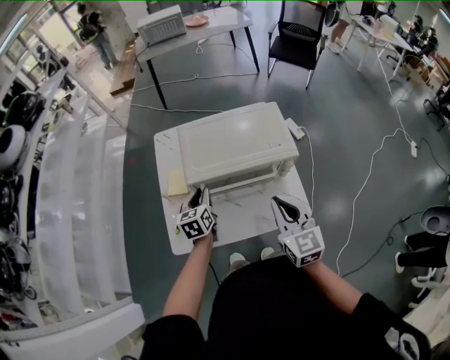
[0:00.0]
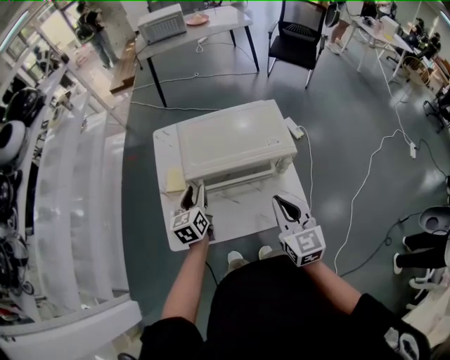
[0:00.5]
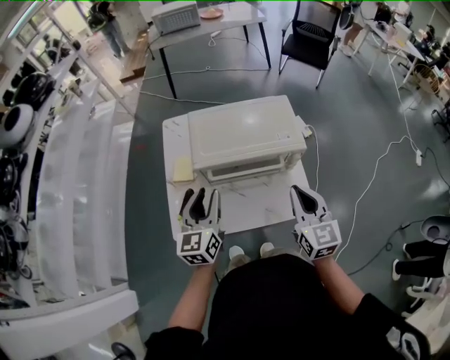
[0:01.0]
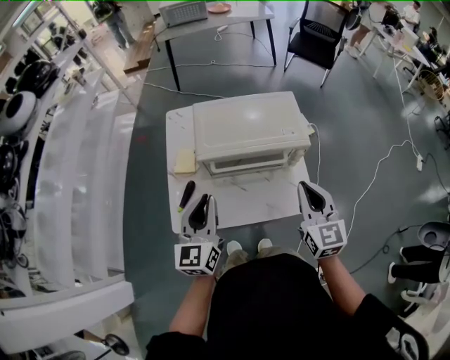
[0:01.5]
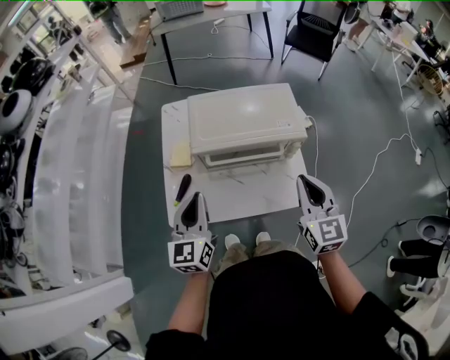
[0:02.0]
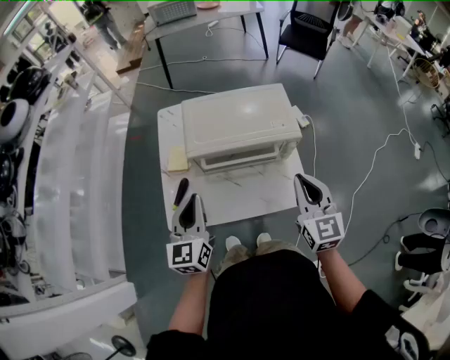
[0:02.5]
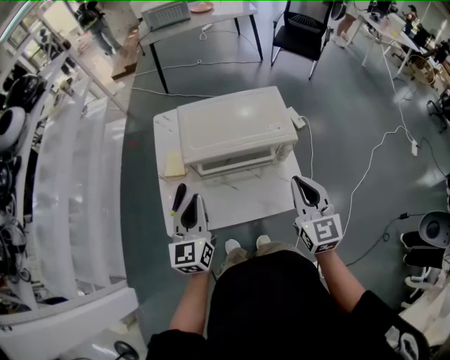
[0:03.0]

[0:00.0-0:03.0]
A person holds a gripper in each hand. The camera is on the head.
0:00.0 to 0:01.5: The left gripper shifts some 20 cm upward and backward, and changes its angle by about 30 degrees.
0:01.5 to 0:03.0: The grippers stay close to where they were, moving slightly.

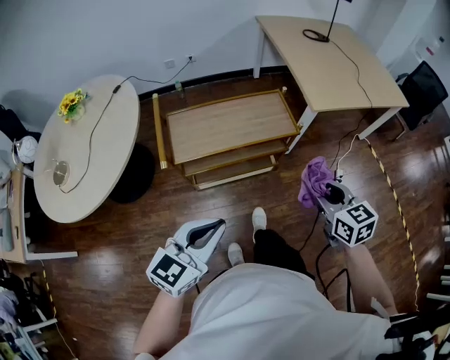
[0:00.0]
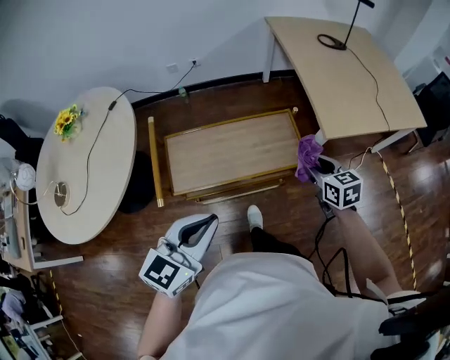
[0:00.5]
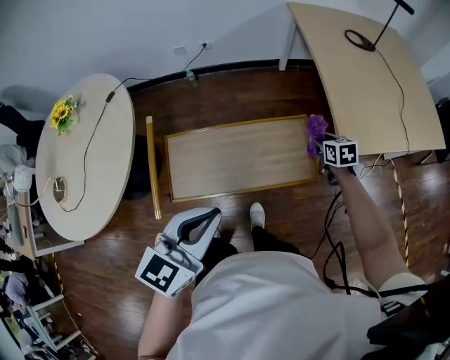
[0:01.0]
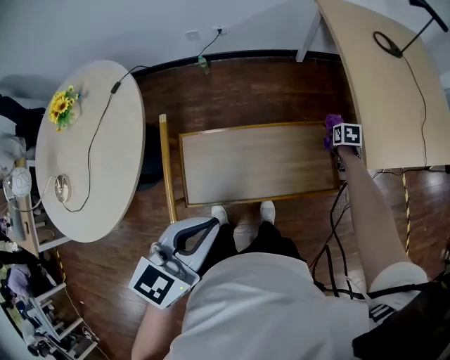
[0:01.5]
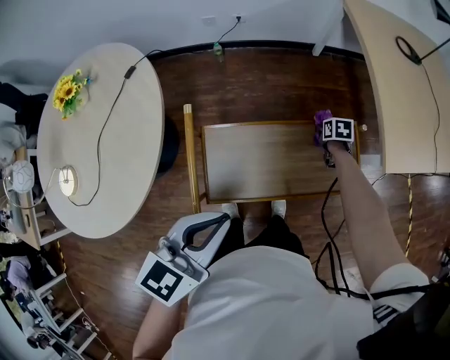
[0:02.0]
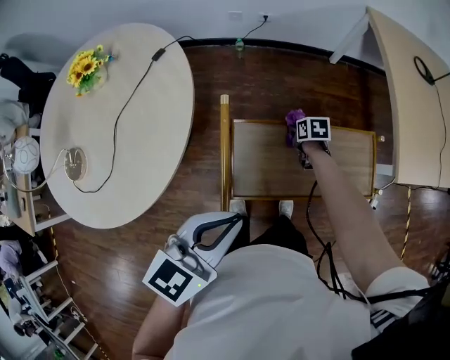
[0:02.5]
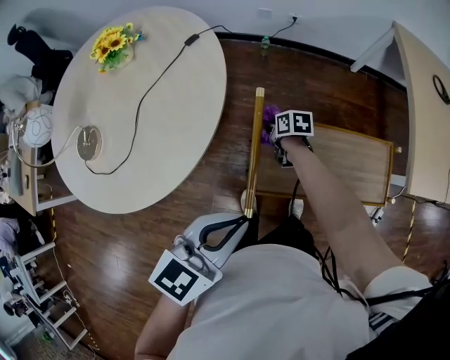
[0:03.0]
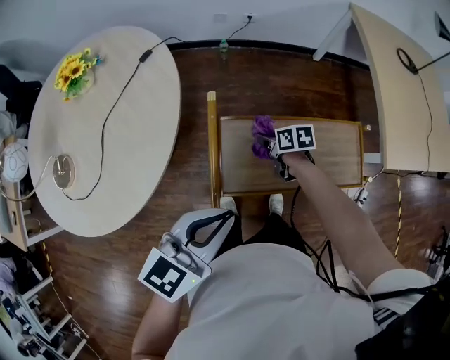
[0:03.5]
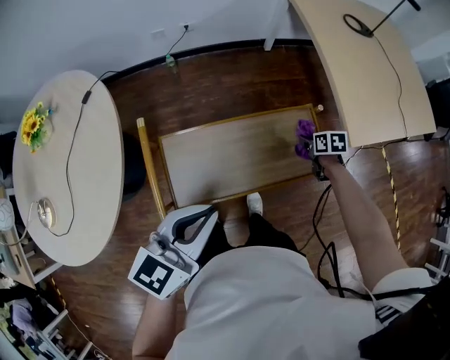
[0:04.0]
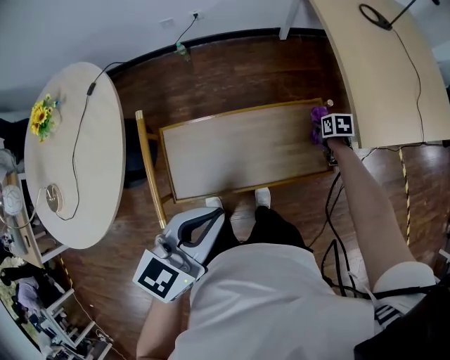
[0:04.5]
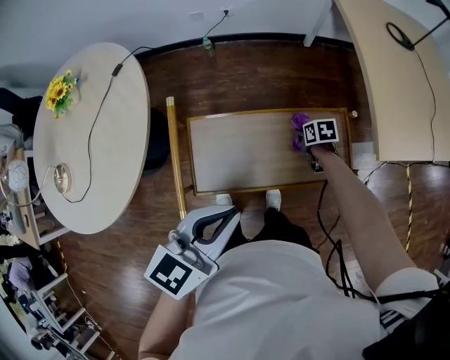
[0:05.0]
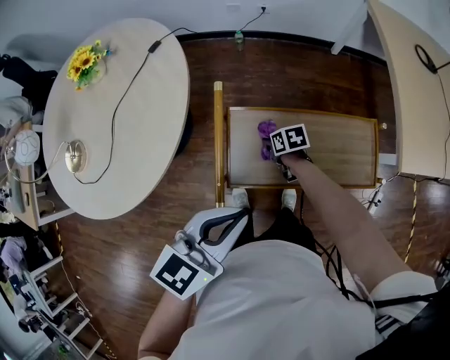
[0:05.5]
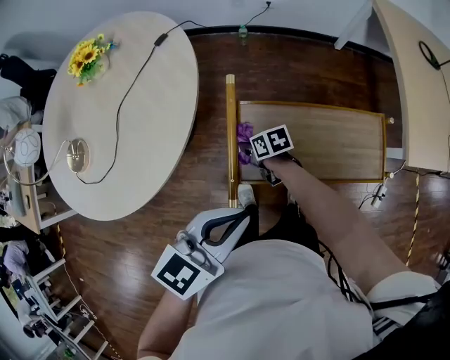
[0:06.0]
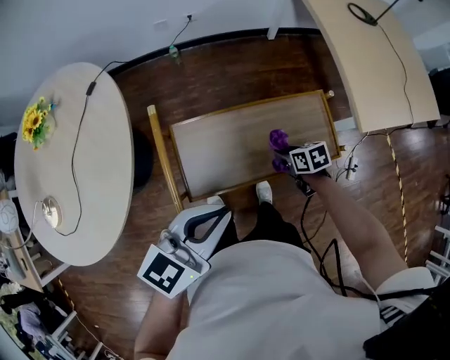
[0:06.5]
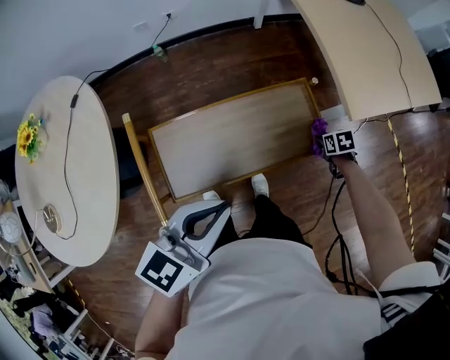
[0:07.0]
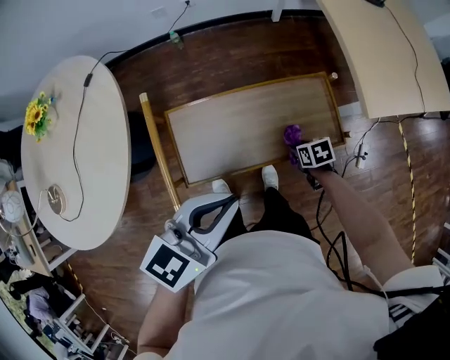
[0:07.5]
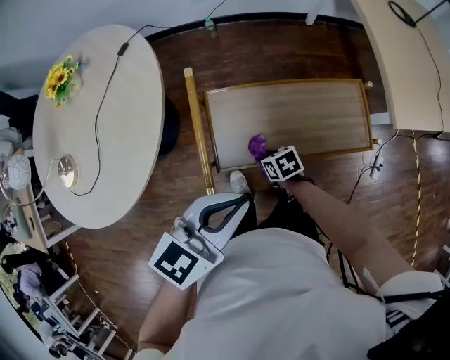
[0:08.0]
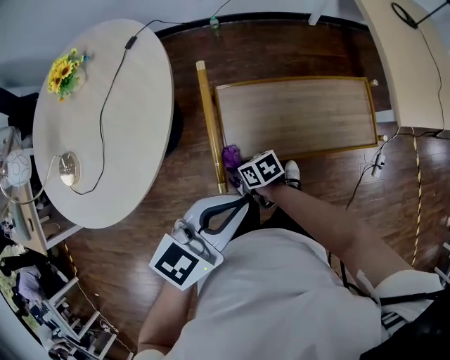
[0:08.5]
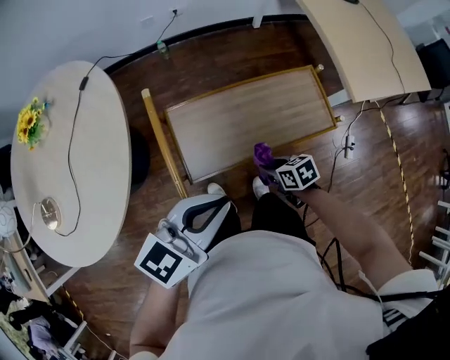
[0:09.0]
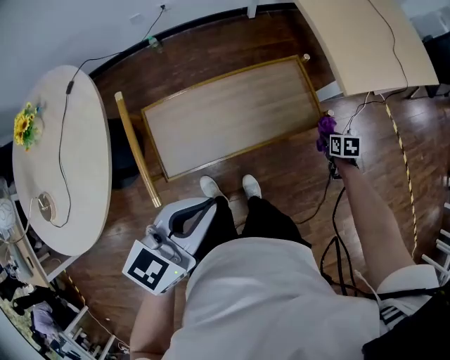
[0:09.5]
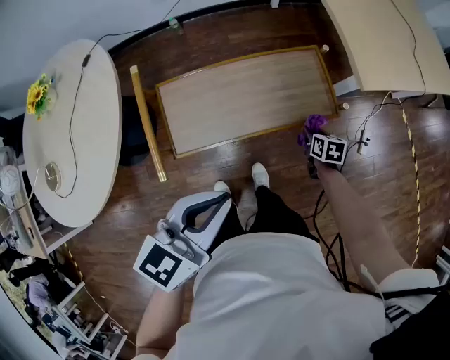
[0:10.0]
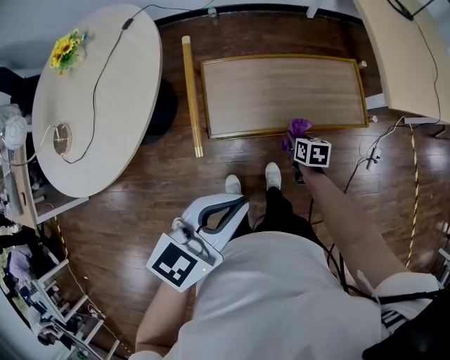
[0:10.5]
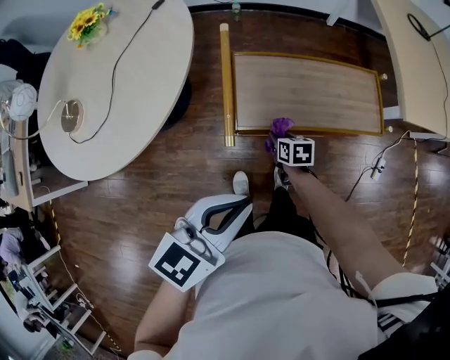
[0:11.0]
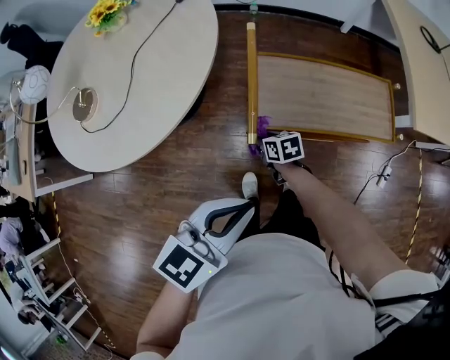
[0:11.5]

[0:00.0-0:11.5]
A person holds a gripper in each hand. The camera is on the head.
0:00.0 to 0:02.0: The left gripper travels forward and to the left by approximately 35 cm, while the right gripper shifts approximately 60 cm forward and downward, and angles its fingers downward, by some 40 degrees.
0:04.0 to 0:06.0: The left gripper moves approximately 15 cm. Meanwhile the right gripper shifts by approximately 50 cm, and swivels roughly 40 degrees.
0:06.0 to 0:07.5: The left gripper changes place by roughly 15 cm. Meanwhile the right gripper ends up roughly 40 cm from where it was, and turns by some 30 degrees.
0:07.5 to 0:09.5: The right gripper turns by about 20 degrees.
0:09.5 to 0:11.5: The right gripper shifts by some 60 cm, and turns by roughly 40 degrees. The left gripper changes place by approximately 20 cm.

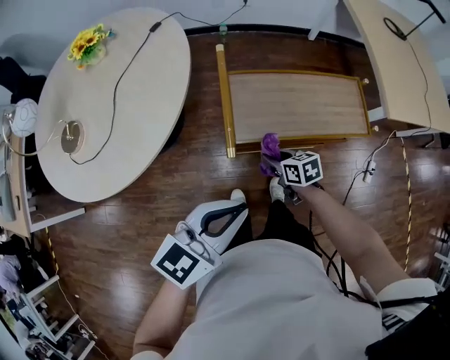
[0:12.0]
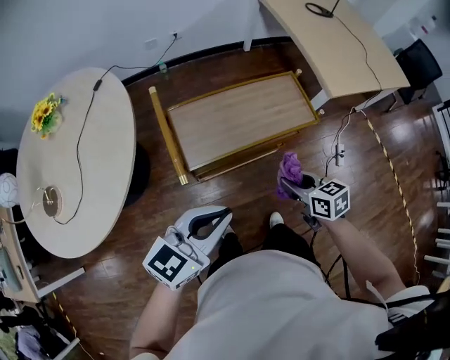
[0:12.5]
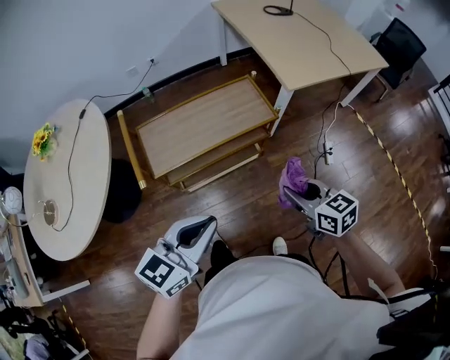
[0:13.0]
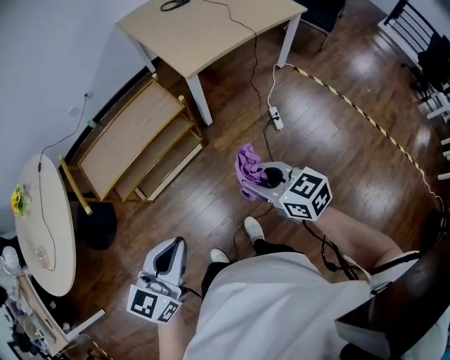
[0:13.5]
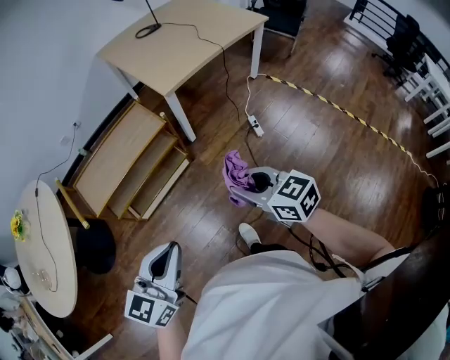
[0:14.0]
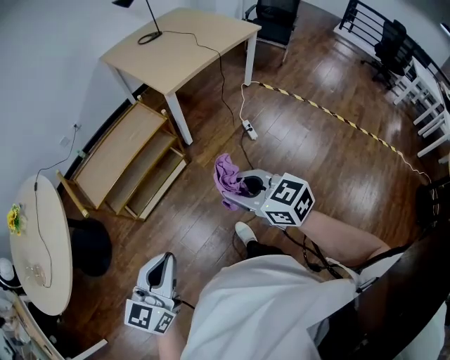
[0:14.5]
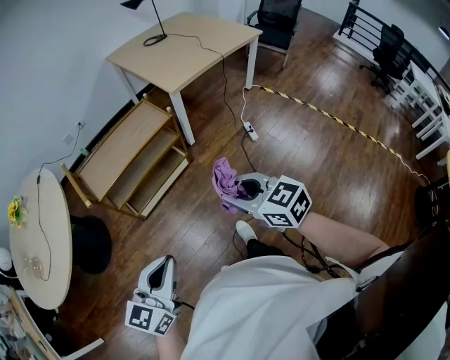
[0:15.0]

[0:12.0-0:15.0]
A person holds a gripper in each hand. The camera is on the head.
0:12.0 to 0:13.5: The right gripper goes about 60 cm to the right, upward and backward, and rotates some 30 degrees; the left gripper is displaced to the right by approximately 35 cm.
0:13.5 to 0:15.0: The two grippers go approximately 20 cm backward and to the left.

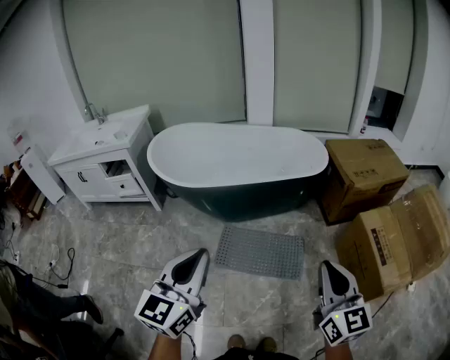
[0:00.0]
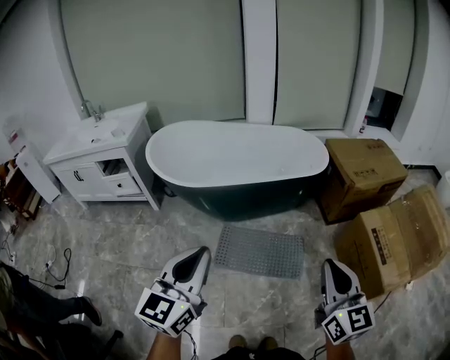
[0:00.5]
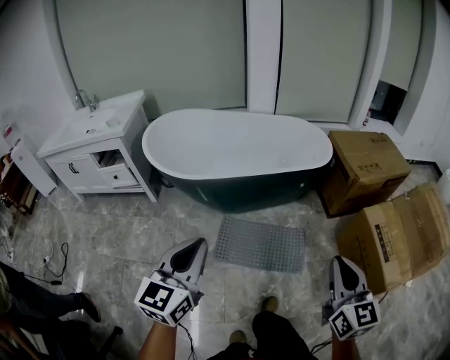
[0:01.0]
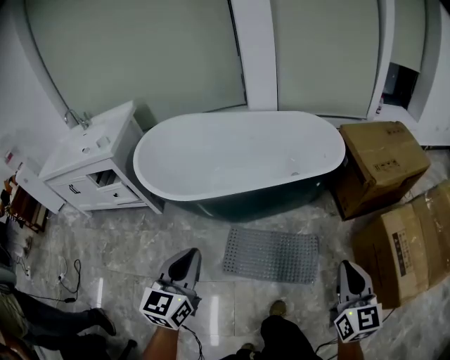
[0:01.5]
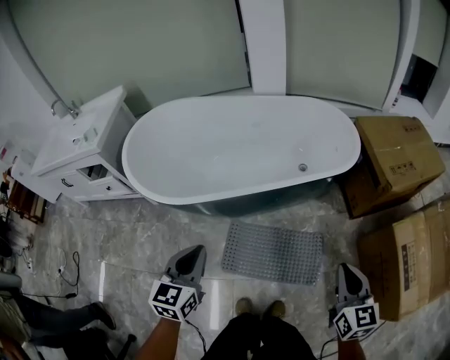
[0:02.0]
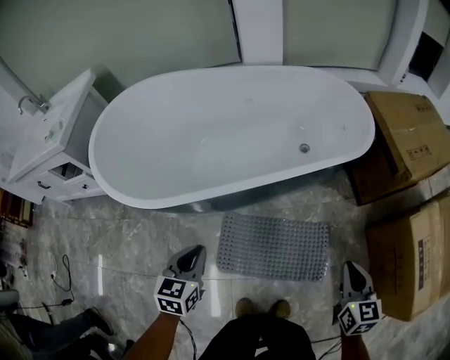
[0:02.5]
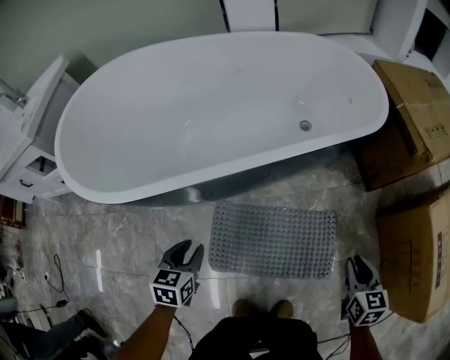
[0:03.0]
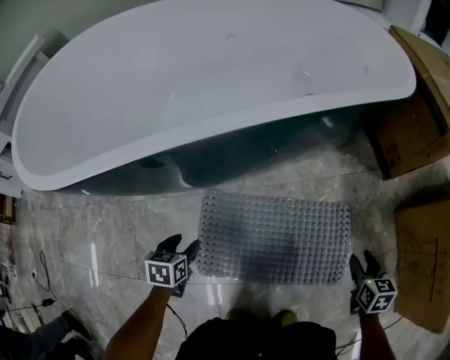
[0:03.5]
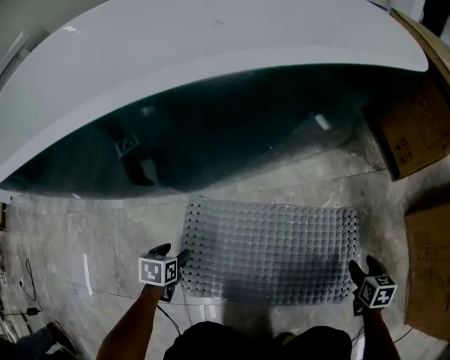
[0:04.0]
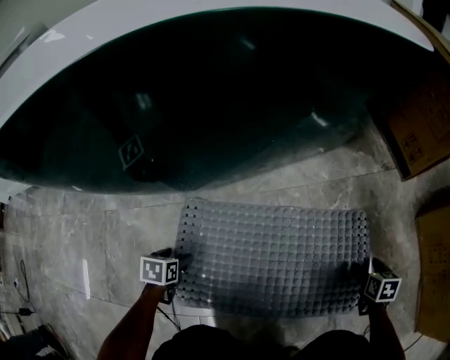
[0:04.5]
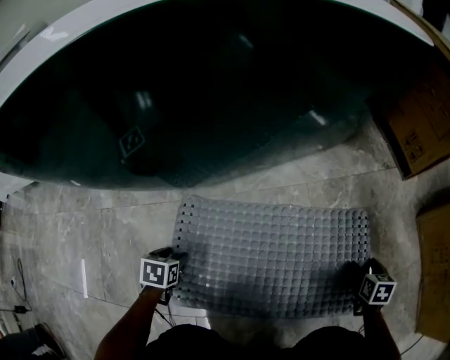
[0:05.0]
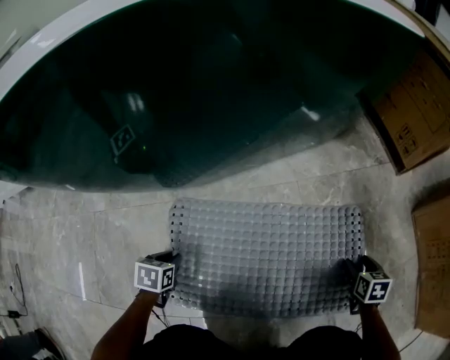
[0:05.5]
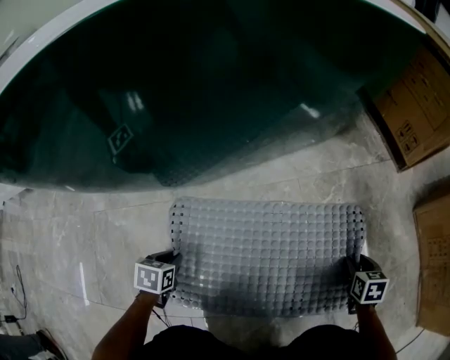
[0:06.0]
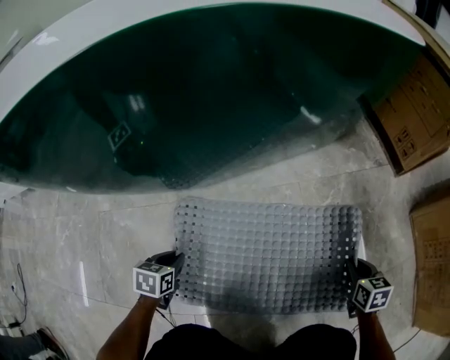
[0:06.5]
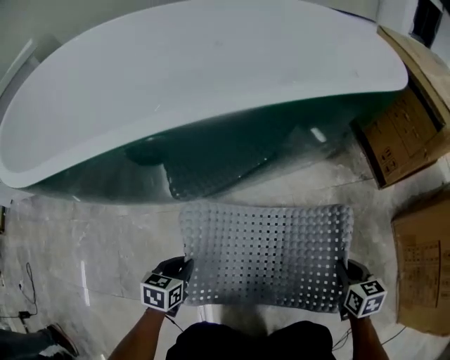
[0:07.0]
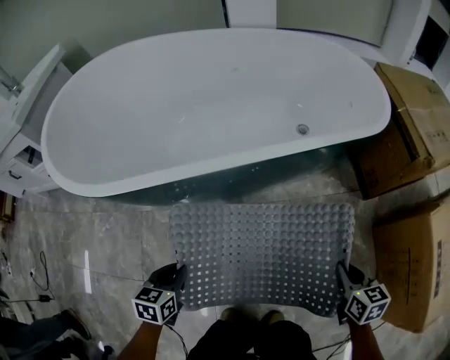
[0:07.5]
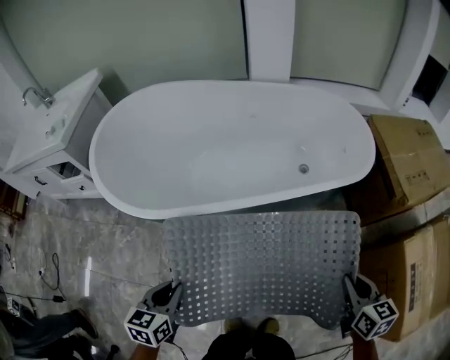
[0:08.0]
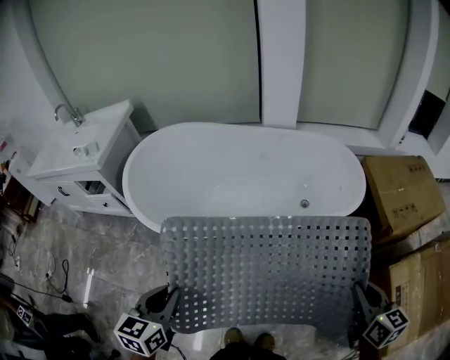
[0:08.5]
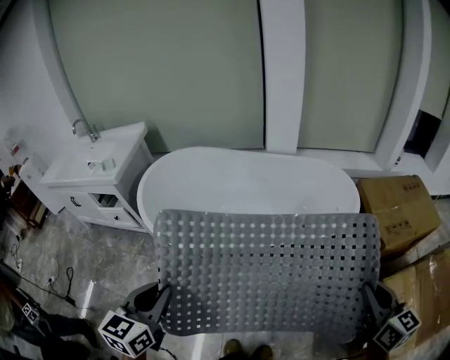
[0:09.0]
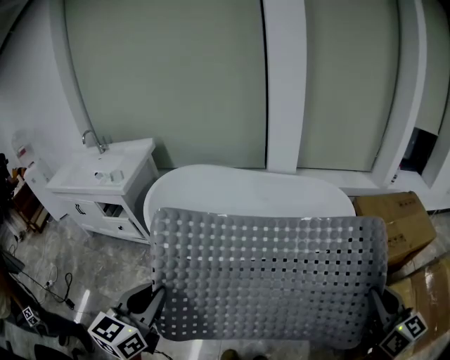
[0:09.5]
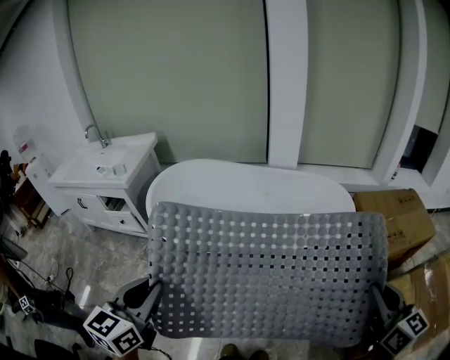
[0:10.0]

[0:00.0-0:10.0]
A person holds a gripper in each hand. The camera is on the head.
0:00.0 to 0:02.0: The two grippers go roughly 35 cm forward and downward. The left gripper turns by roughly 20 degrees.
0:02.0 to 0:04.0: Both grippers travel together downward, some 70 cm. The right gripper angles its fingers downward, by roughly 40 degrees, and opens up. The left gripper tilts its fingers roughly 50 degrees downward, and opens.
0:04.0 to 0:06.0: The grippers both shift downward by roughly 10 cm. The left gripper closes its fingers.
0:06.0 to 0:08.0: The two grippers go some 70 cm upward. The right gripper swivels roughly 30 degrees, and closes its fingers, while the left gripper turns by some 30 degrees.
0:08.0 to 0:10.0: The grippers both shift upward by about 40 cm. The right gripper rotates approximately 30 degrees. The left gripper changes its angle by some 30 degrees.
